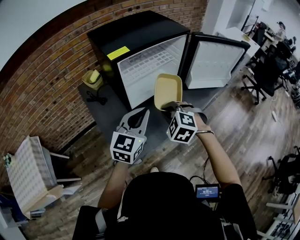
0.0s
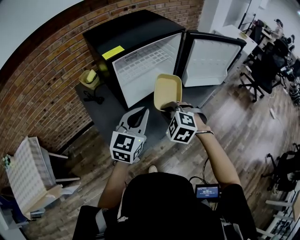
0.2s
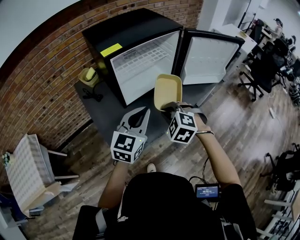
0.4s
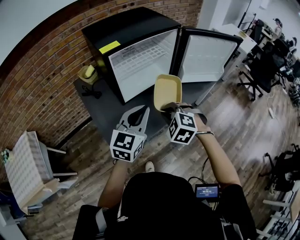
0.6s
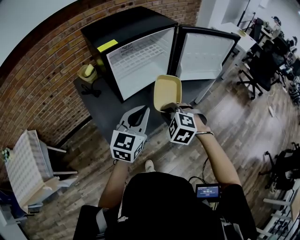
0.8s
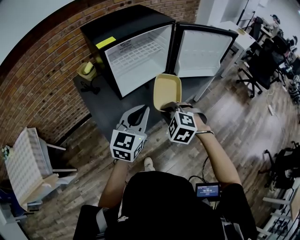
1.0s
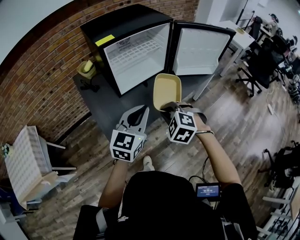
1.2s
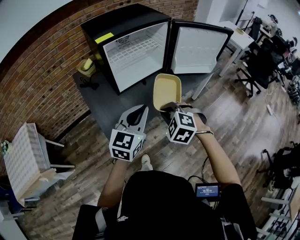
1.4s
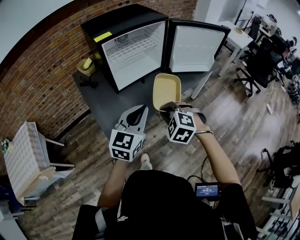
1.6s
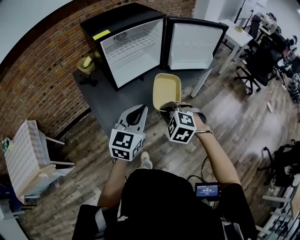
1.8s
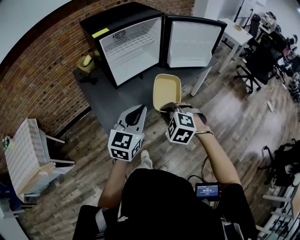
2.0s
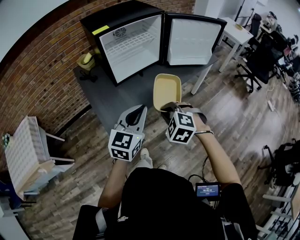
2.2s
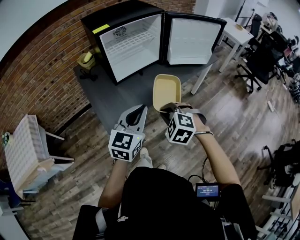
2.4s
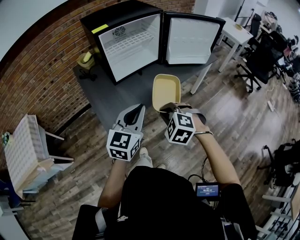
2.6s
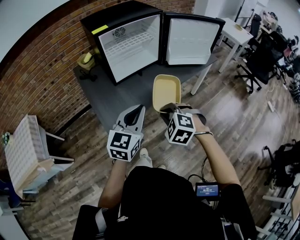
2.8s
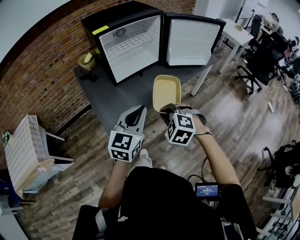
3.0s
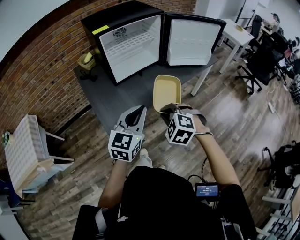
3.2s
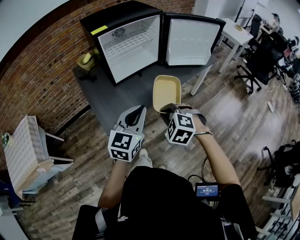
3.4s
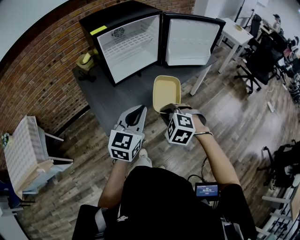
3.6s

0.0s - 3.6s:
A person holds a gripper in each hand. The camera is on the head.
0.0s - 1.8s: The grippers both shift backward and to the right by about 20 cm.
1.8s - 3.6s: The right gripper shifts by some 5 cm.

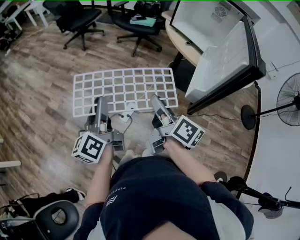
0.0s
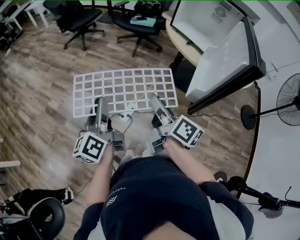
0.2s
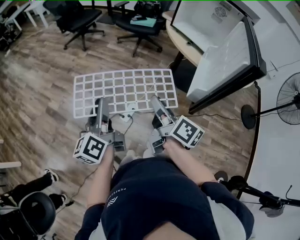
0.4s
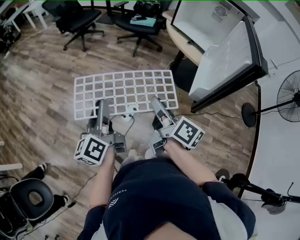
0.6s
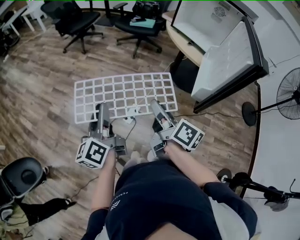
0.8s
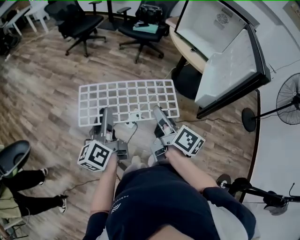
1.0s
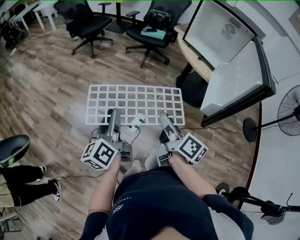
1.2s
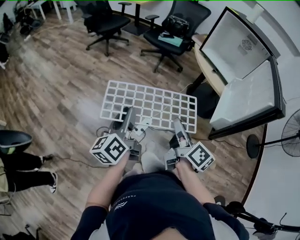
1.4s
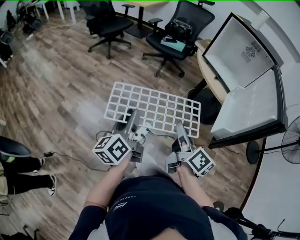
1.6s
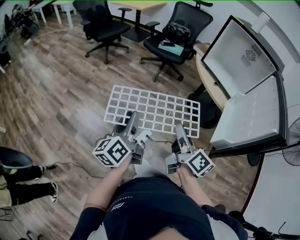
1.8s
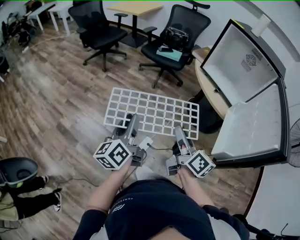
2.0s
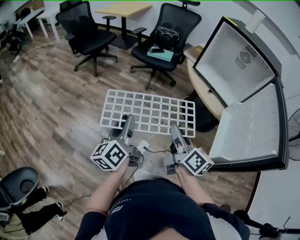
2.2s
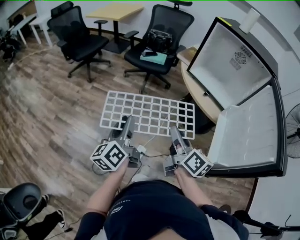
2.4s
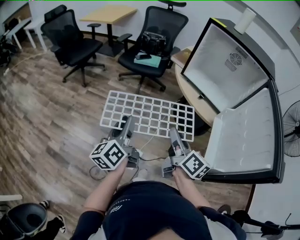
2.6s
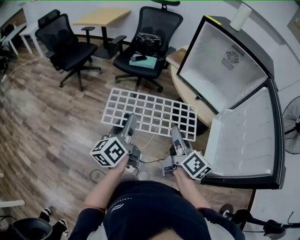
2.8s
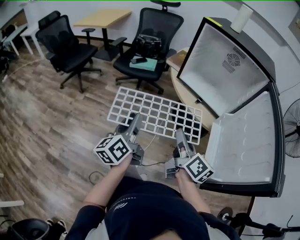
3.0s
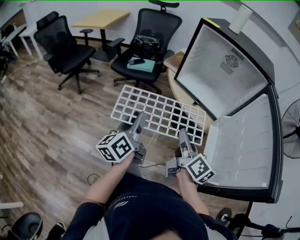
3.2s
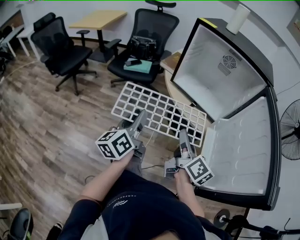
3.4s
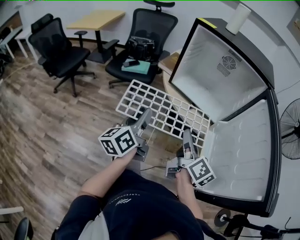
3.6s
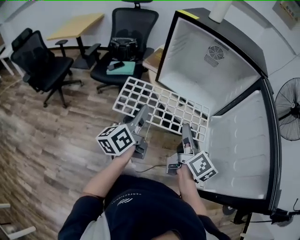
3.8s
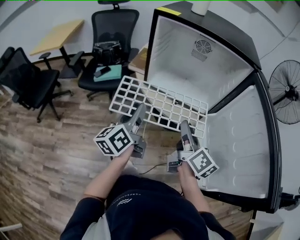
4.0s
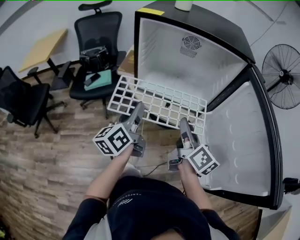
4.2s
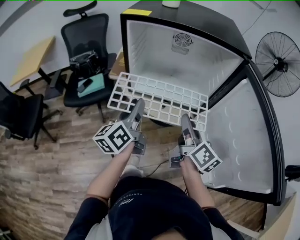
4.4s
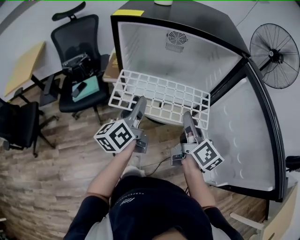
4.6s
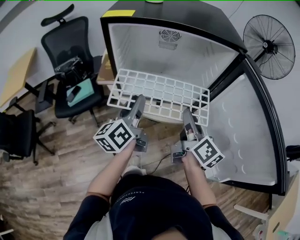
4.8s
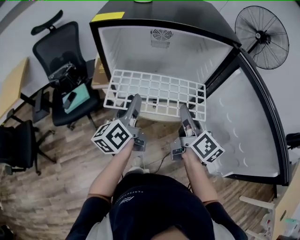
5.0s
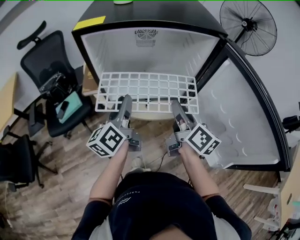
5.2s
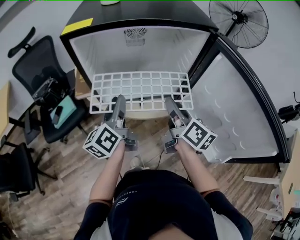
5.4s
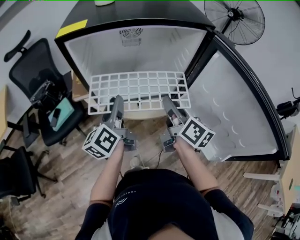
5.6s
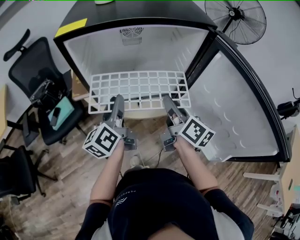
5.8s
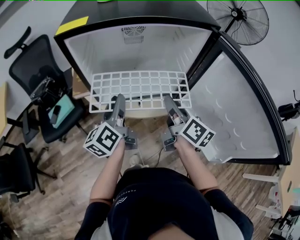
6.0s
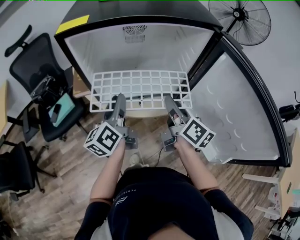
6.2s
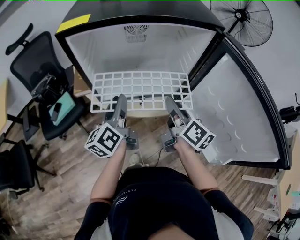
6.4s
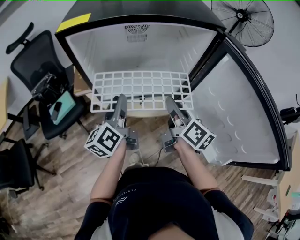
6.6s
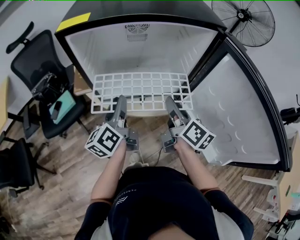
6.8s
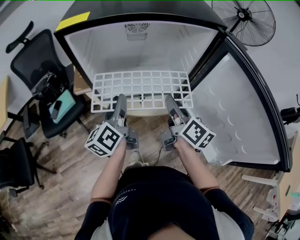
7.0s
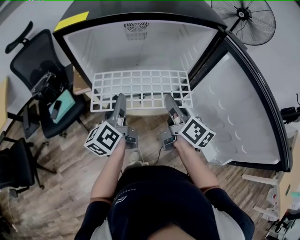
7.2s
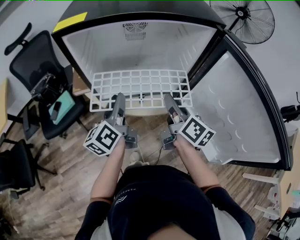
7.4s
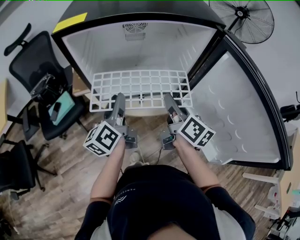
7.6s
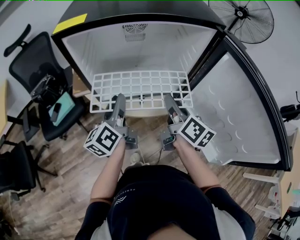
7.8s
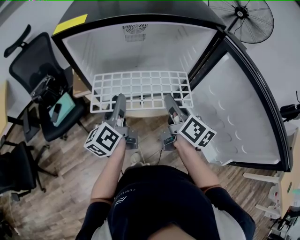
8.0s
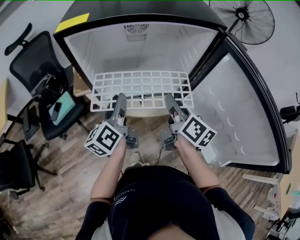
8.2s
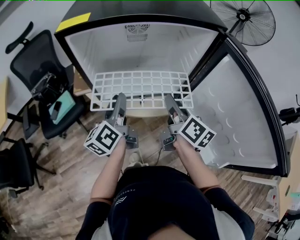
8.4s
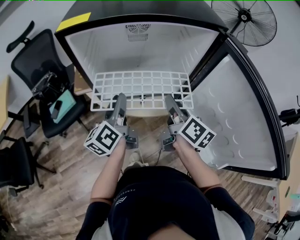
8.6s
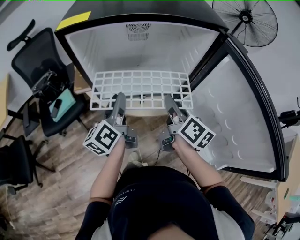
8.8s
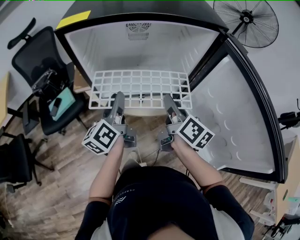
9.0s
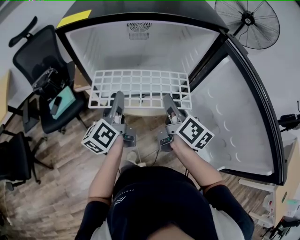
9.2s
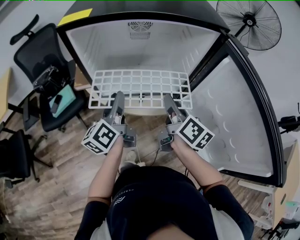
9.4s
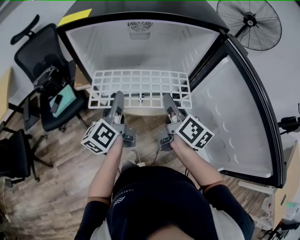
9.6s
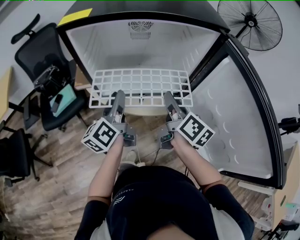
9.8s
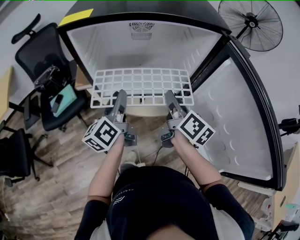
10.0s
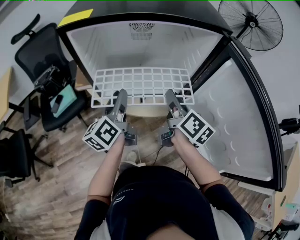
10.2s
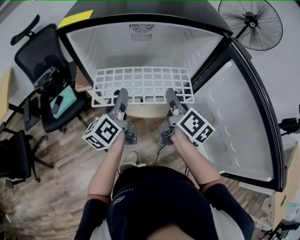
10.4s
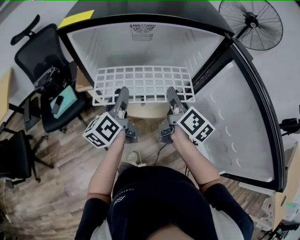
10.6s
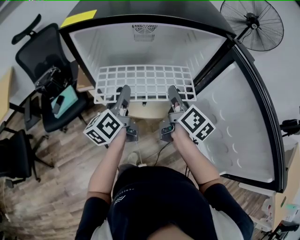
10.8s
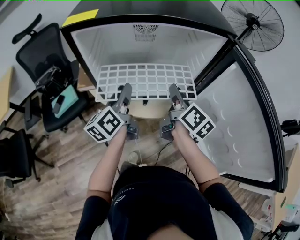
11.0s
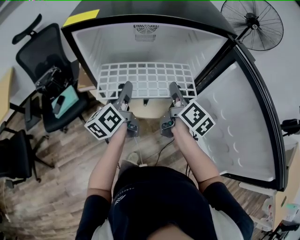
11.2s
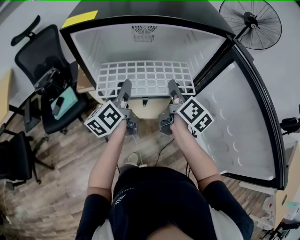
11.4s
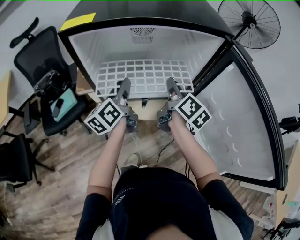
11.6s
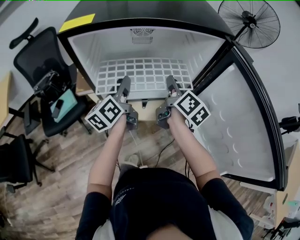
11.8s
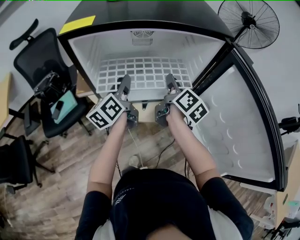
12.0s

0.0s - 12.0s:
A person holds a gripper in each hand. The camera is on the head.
0.0s - 1.6s: The left gripper goes approximately 5 cm forward. The right gripper moves roughly 5 cm.
1.6s - 3.0s: Both grippers move forward, approximately 25 cm.
3.0s - 4.4s: The right gripper ends up about 20 cm from where it was, and rotates some 30 degrees, while the left gripper changes place by about 30 cm, and rotates about 30 degrees.
4.4s - 6.0s: The two grippers go roughly 5 cm forward.
6.0s - 9.0s: The two grippers keep their place.
9.0s - 10.4s: There are only small adjustments of the grippers.
10.4s - 12.0s: The grippers both shift forward by about 10 cm.

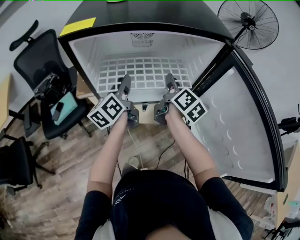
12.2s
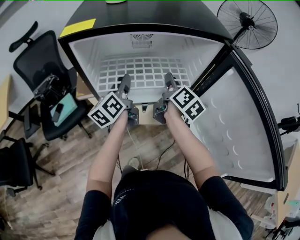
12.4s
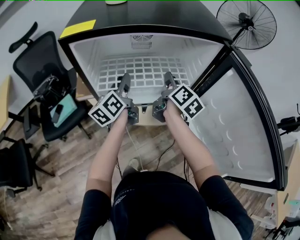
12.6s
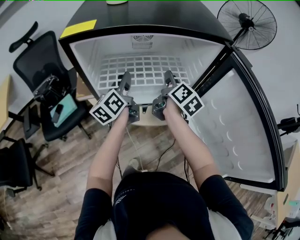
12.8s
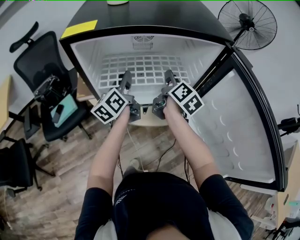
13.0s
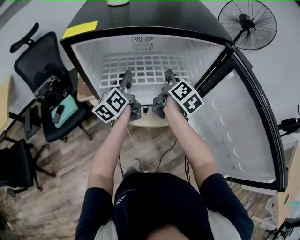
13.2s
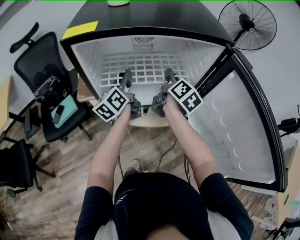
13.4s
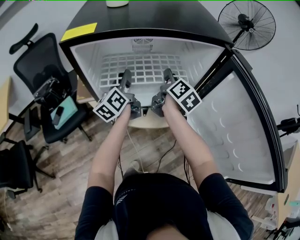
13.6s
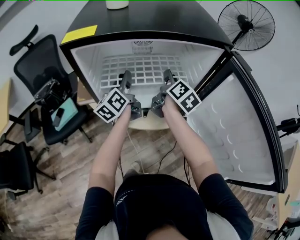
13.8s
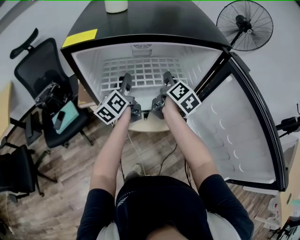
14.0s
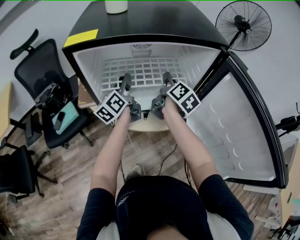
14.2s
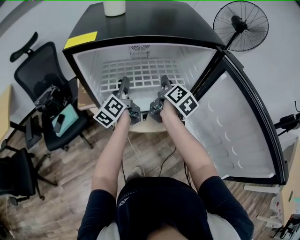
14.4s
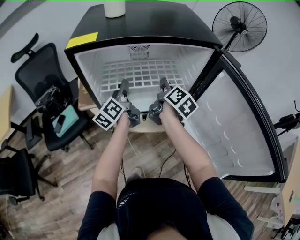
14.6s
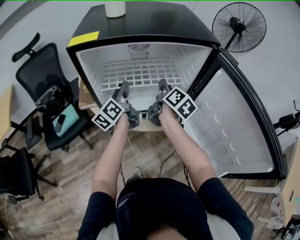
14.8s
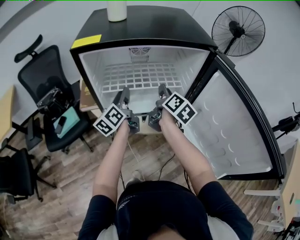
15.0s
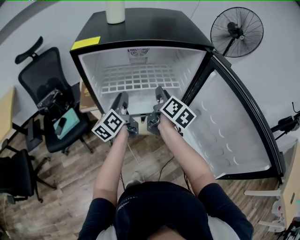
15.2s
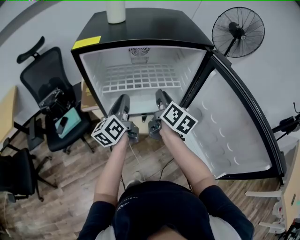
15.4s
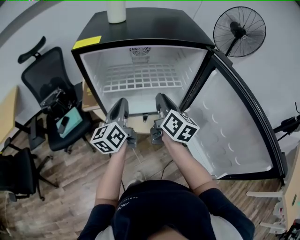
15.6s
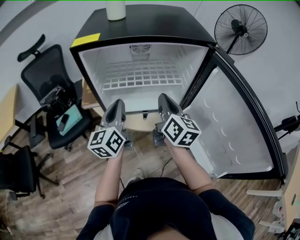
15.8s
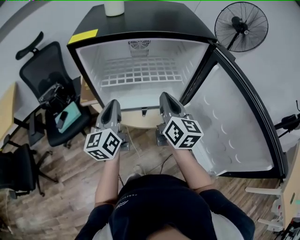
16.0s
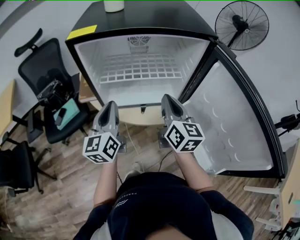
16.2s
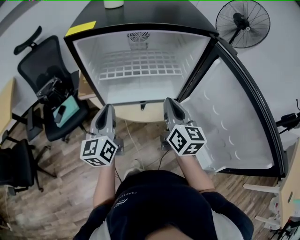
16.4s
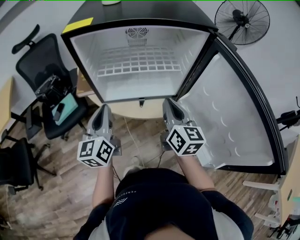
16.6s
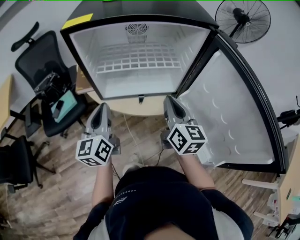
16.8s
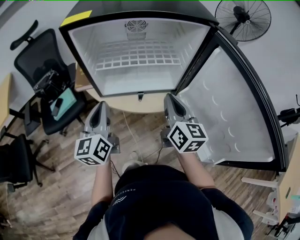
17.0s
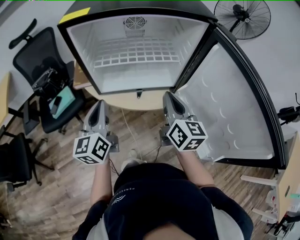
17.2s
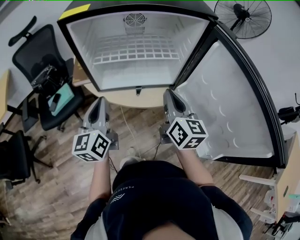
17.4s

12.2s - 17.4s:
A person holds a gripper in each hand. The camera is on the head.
12.2s - 14.0s: Both grippers move forward, approximately 5 cm.
14.0s - 15.6s: The grippers both shift backward by roughly 15 cm. The left gripper closes its fingers; the right gripper rotates approximately 20 degrees, and closes.
15.6s - 17.4s: The two grippers go about 10 cm backward.

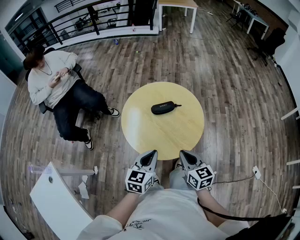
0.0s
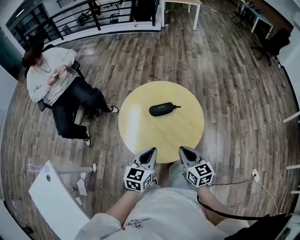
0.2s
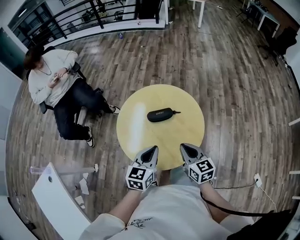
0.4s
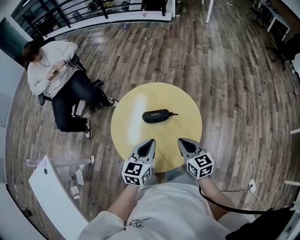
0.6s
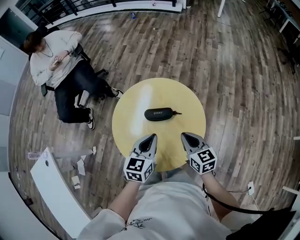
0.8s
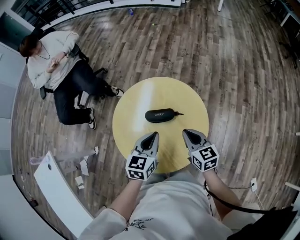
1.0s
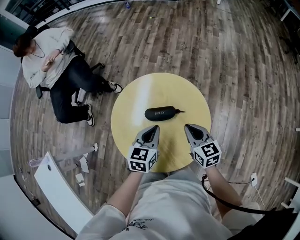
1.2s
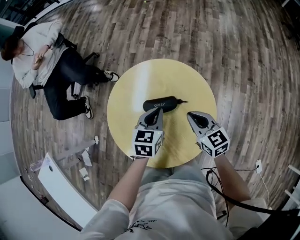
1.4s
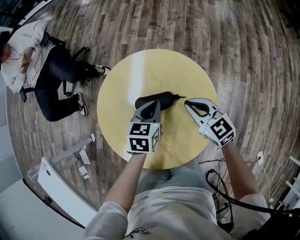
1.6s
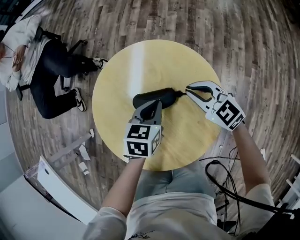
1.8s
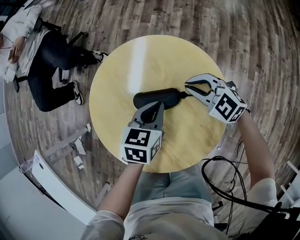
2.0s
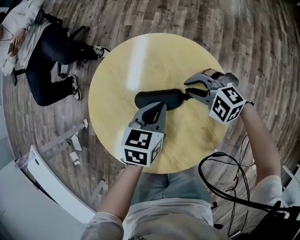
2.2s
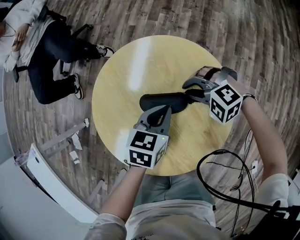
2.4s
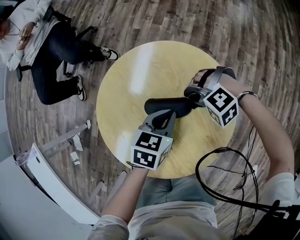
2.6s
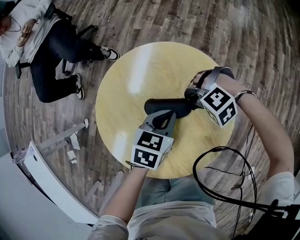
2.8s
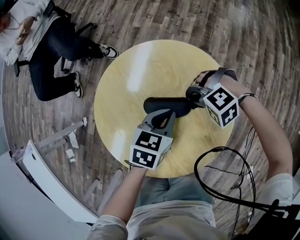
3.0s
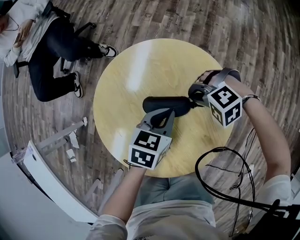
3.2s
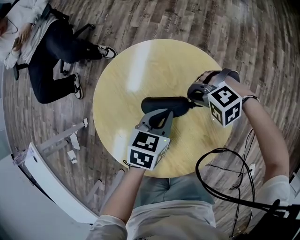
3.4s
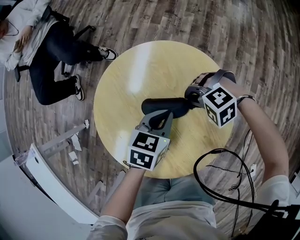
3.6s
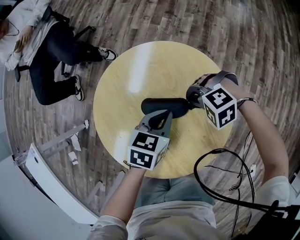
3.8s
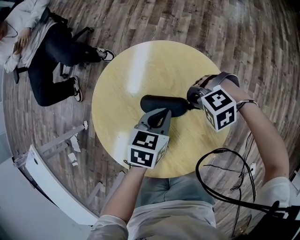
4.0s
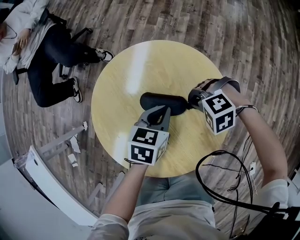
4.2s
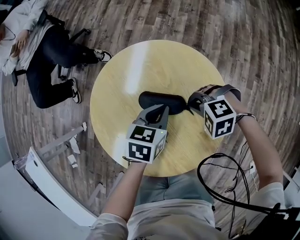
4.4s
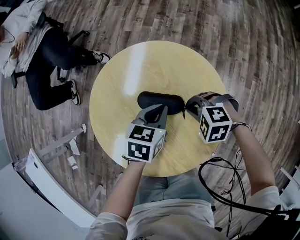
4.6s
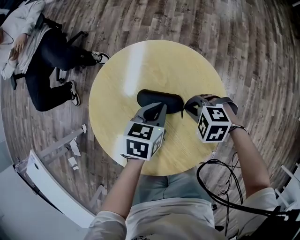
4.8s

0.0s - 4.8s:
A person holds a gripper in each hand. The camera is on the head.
0.0s - 1.6s: The right gripper travels forward and downward by about 35 cm, and changes its angle by approximately 30 degrees. The left gripper is displaced forward, downward and to the right by about 40 cm, and changes its angle by approximately 20 degrees.
1.6s - 3.2s: The right gripper heads downward, covering about 10 cm, and angles its fingers downward, by roughly 40 degrees.
3.2s - 4.8s: The right gripper shifts by roughly 5 cm, and swivels roughly 40 degrees.
